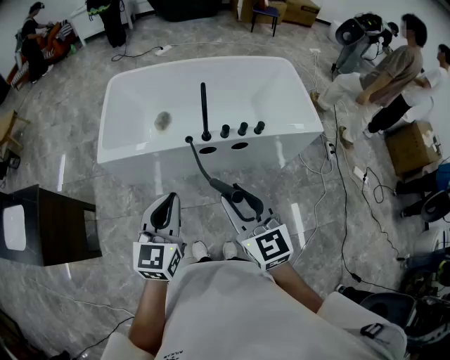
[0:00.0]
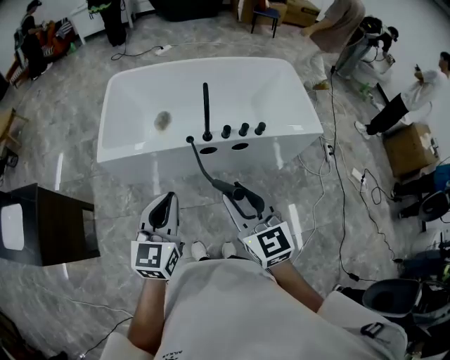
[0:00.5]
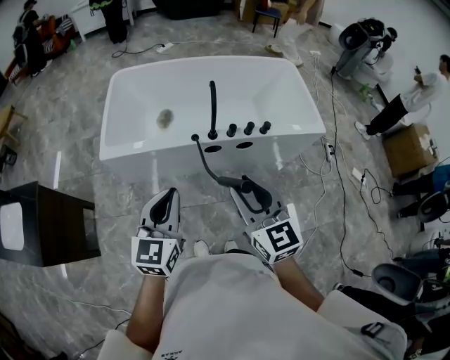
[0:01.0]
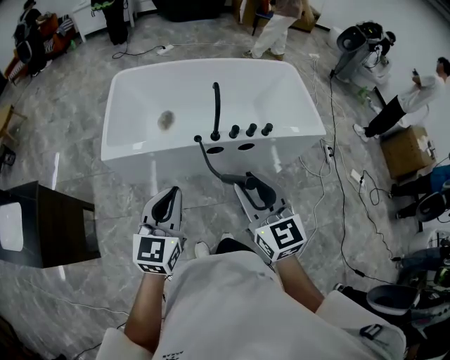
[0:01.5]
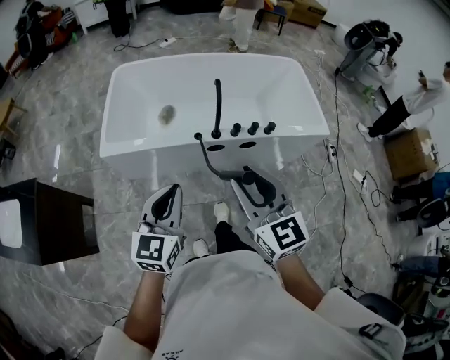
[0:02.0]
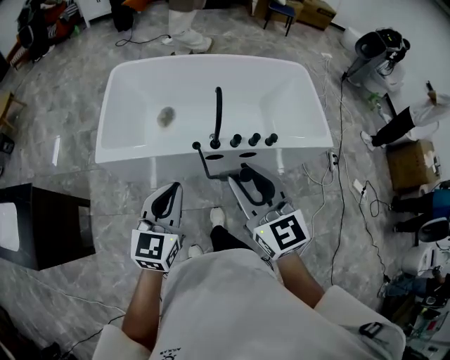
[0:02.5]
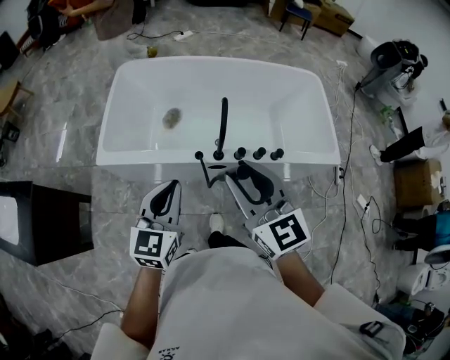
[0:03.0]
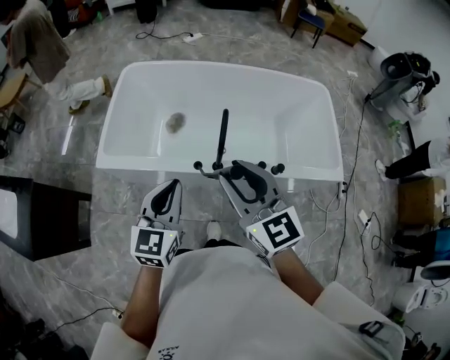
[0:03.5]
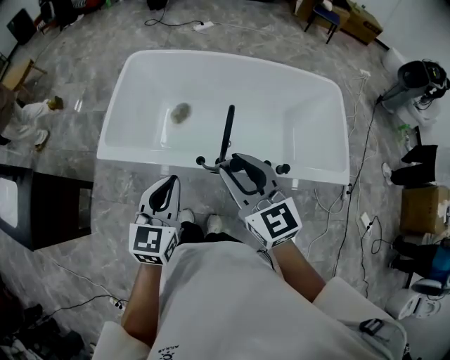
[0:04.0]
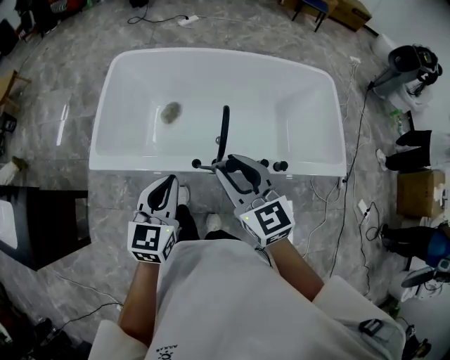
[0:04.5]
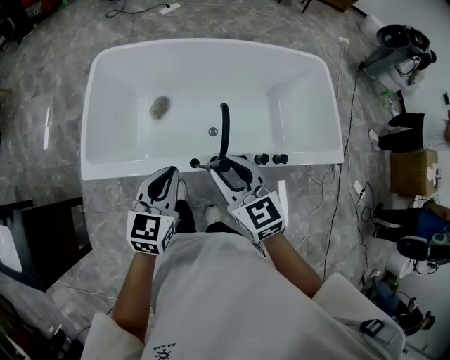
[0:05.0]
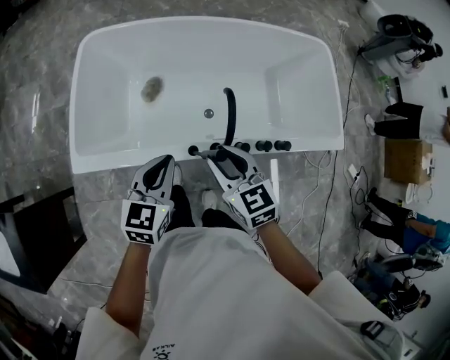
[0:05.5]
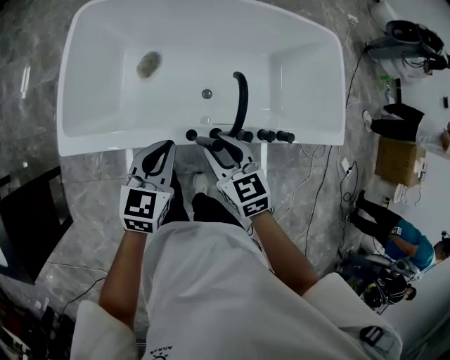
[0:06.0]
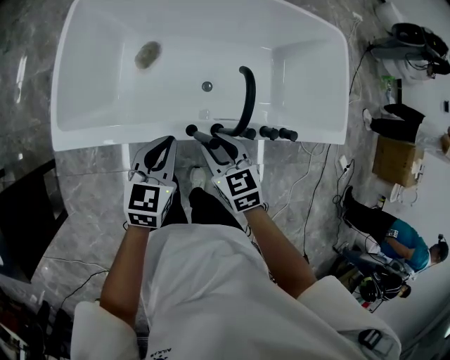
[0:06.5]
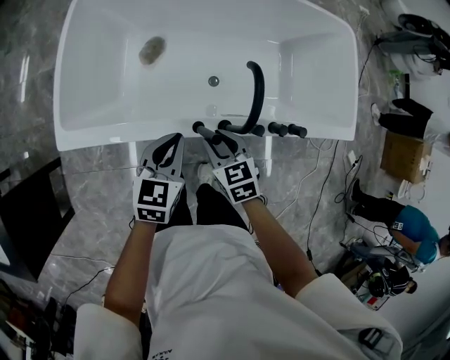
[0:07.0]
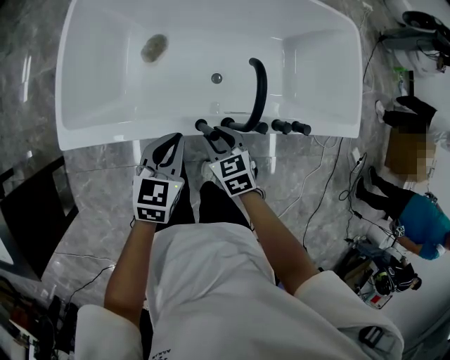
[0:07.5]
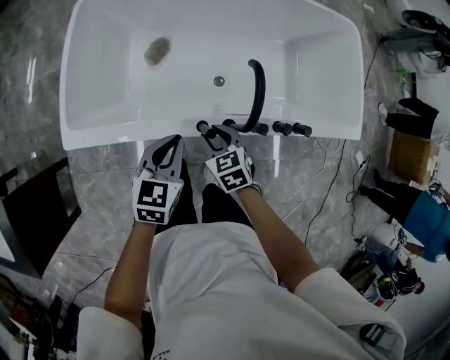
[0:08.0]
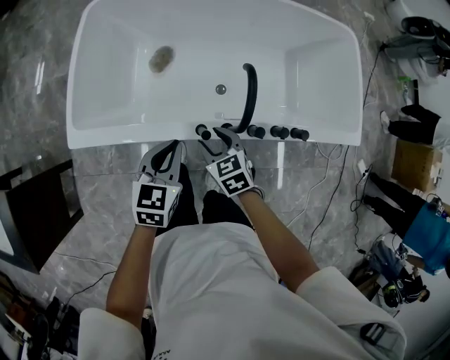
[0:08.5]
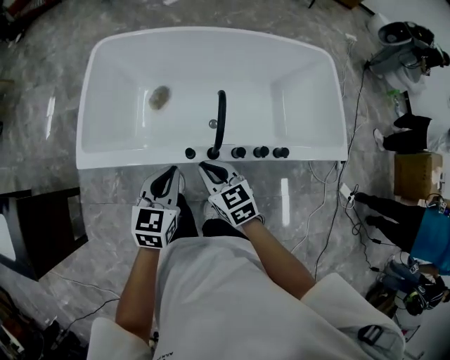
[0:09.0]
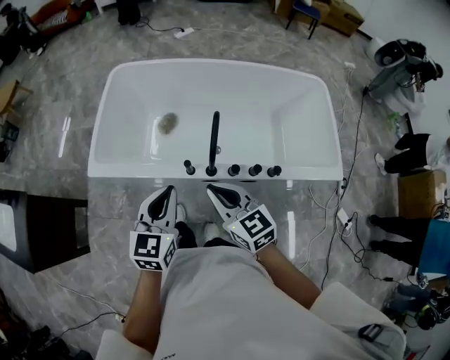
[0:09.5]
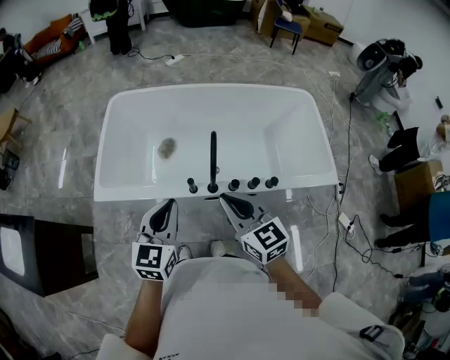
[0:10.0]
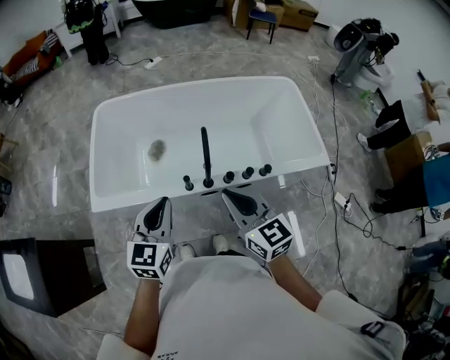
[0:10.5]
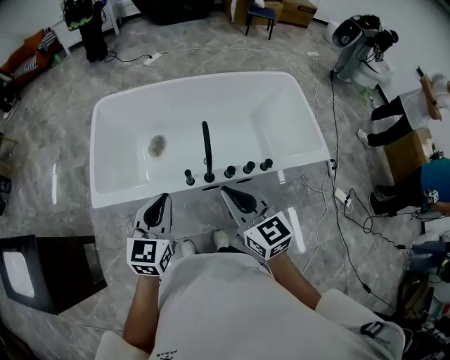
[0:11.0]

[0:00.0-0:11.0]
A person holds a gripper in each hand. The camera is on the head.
0:00.0 to 0:02.0: The right gripper changes place by roughly 5 cm. The left gripper changes place by some 5 cm.
0:02.0 to 0:03.5: The right gripper shifts roughly 20 cm forward. Meanwhile the left gripper moves forward and to the right, about 20 cm.
0:03.5 to 0:05.5: The left gripper moves forward and downward, about 20 cm, while the right gripper moves downward and forward, some 25 cm, and turns by roughly 30 degrees.
0:05.5 to 0:07.5: The right gripper goes approximately 20 cm downward, and rotates about 20 degrees; the left gripper moves downward, approximately 10 cm.
0:07.5 to 0:09.0: The left gripper moves upward and backward, about 10 cm. Meanwhile the right gripper heads upward, covering roughly 15 cm, and closes its fingers.
0:09.0 to 0:11.0: The right gripper goes approximately 20 cm upward and backward, and changes its angle by roughly 20 degrees; the left gripper is displaced upward and backward by some 15 cm.

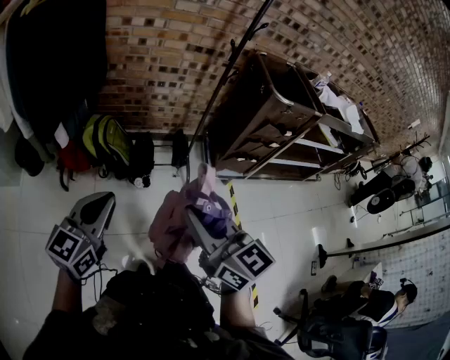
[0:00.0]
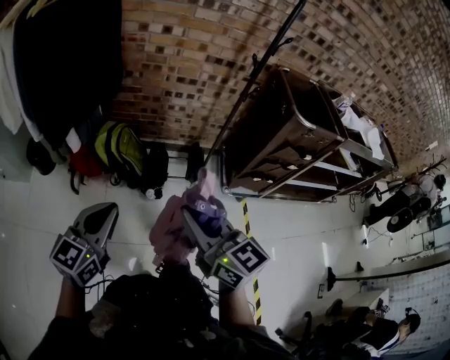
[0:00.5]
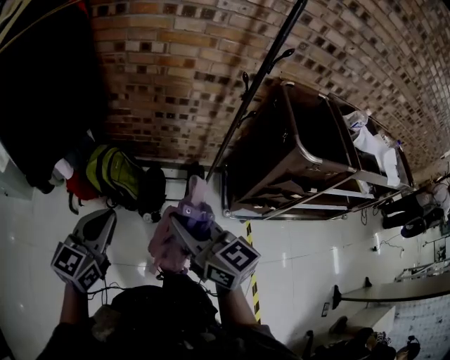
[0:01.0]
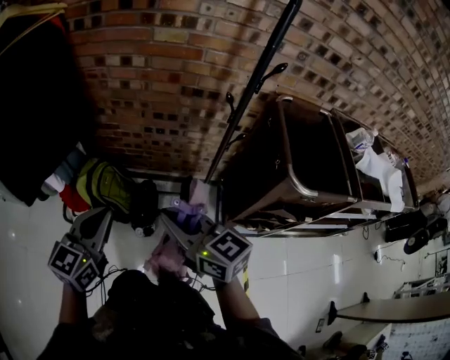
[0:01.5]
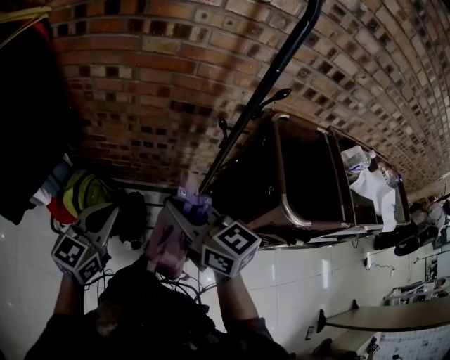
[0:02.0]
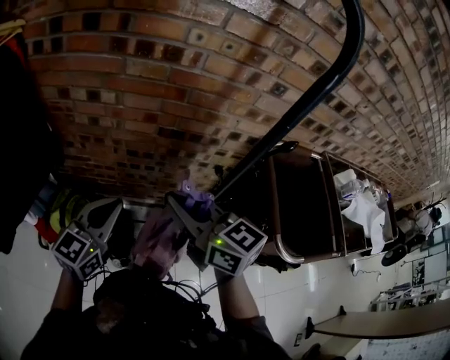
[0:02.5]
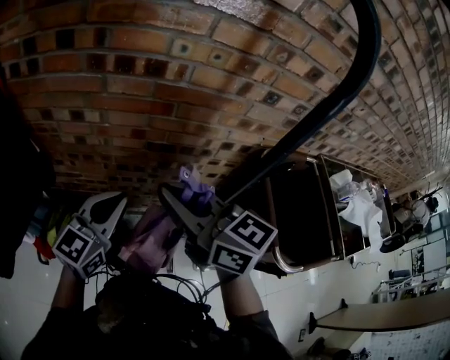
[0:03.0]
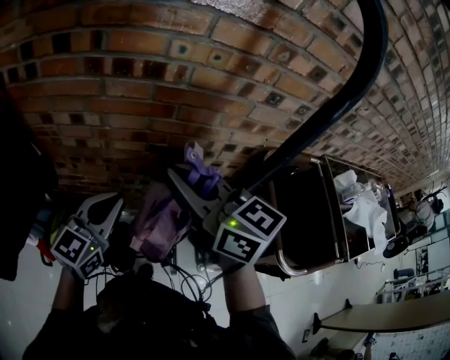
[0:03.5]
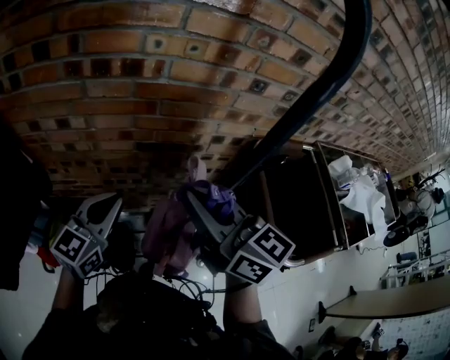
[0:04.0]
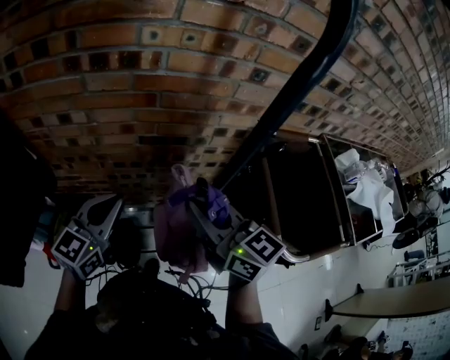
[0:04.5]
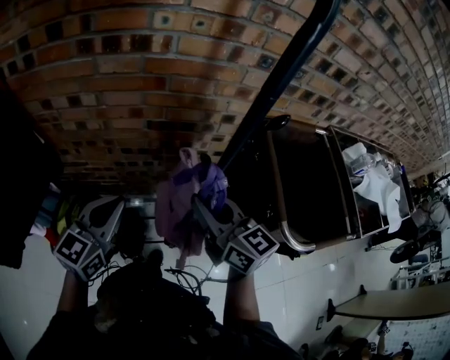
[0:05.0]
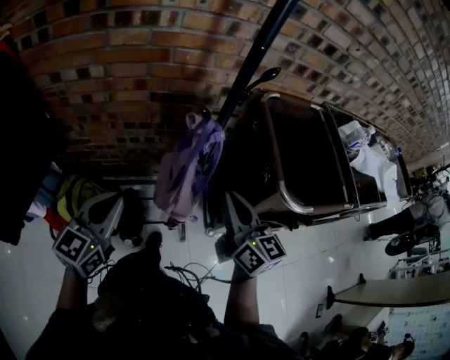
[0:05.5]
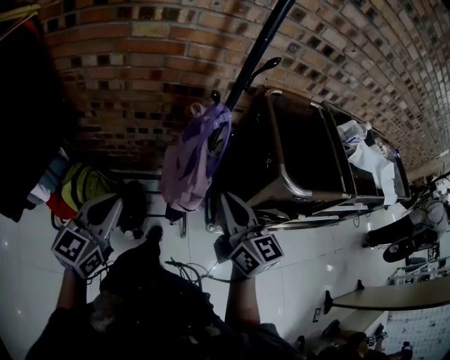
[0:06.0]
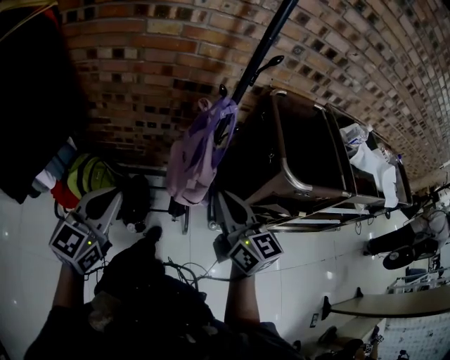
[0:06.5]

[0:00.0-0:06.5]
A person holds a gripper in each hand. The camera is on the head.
0:00.0 to 0:02.0: The pair of grippers is taken forward and to the right, roughly 50 cm.
0:02.0 to 0:04.5: The right gripper travels forward and to the right by about 20 cm. Meanwhile the left gripper goes roughly 20 cm forward.
0:04.5 to 0:06.5: The grippers both shift backward by approximately 25 cm.

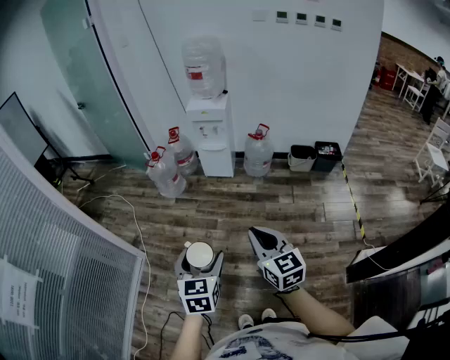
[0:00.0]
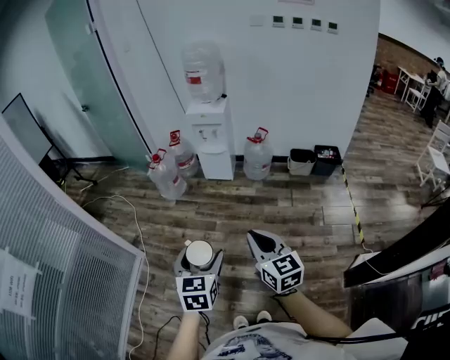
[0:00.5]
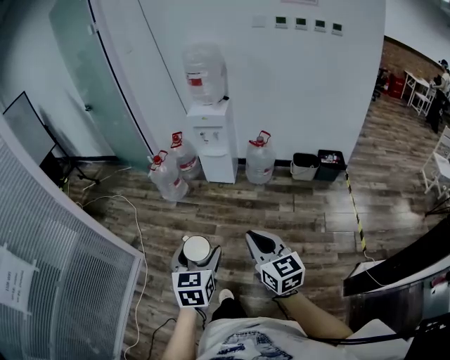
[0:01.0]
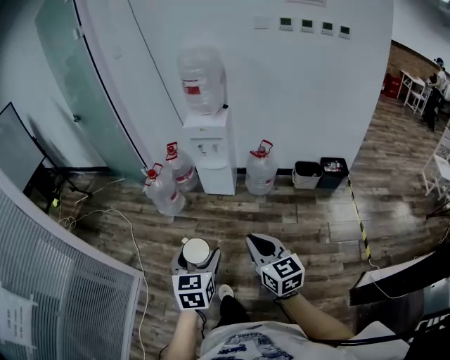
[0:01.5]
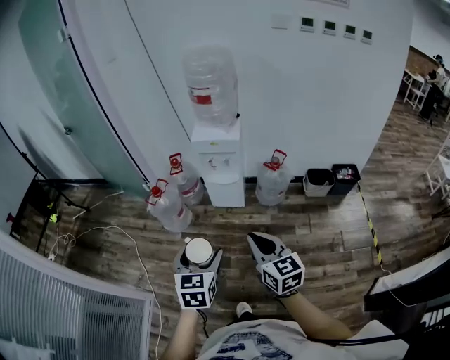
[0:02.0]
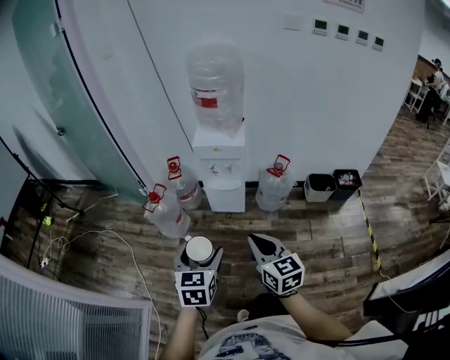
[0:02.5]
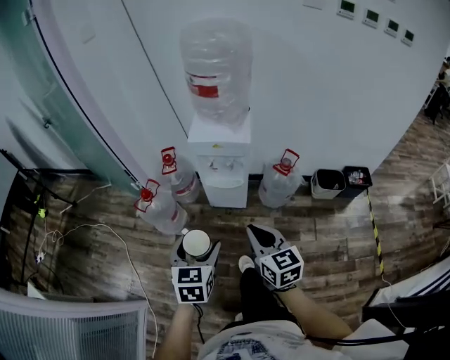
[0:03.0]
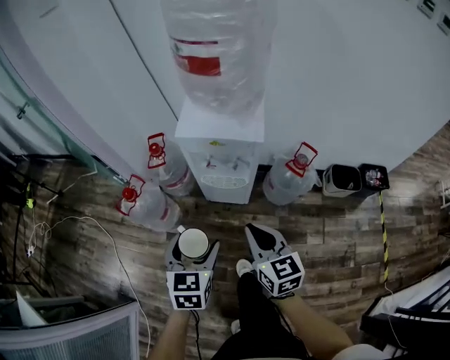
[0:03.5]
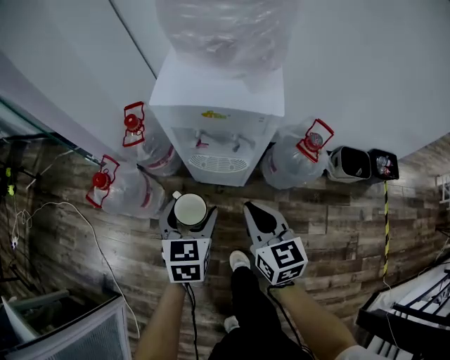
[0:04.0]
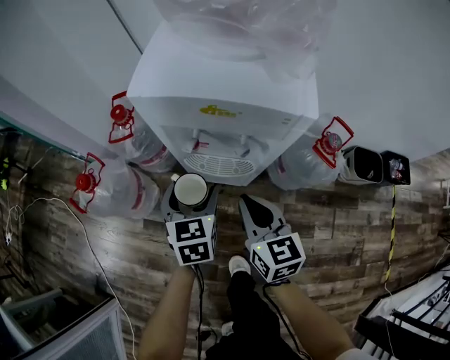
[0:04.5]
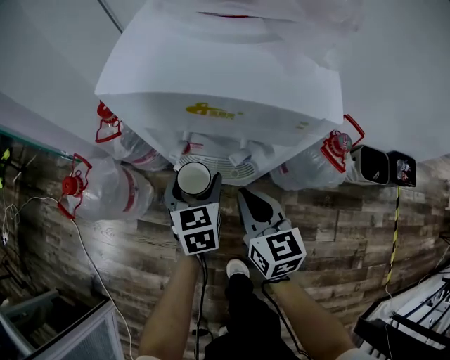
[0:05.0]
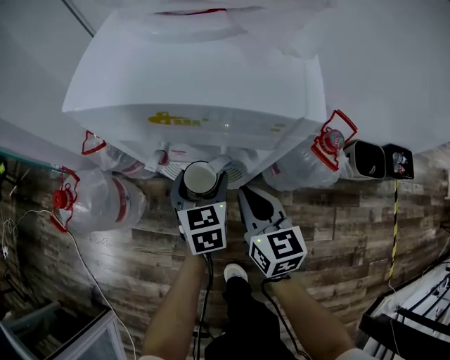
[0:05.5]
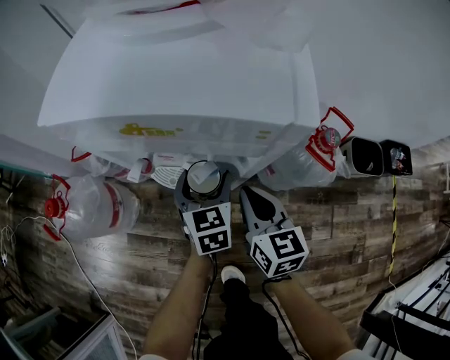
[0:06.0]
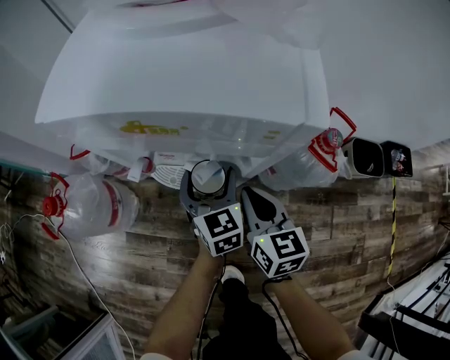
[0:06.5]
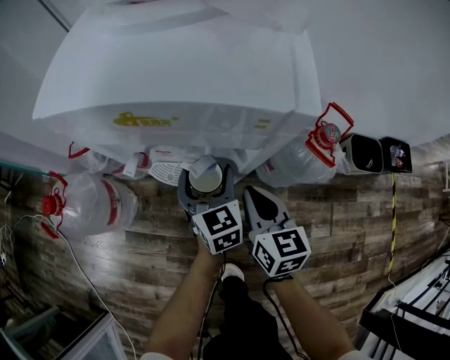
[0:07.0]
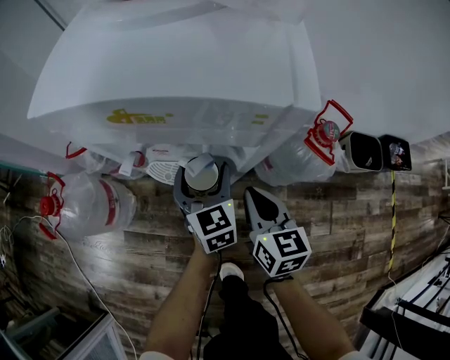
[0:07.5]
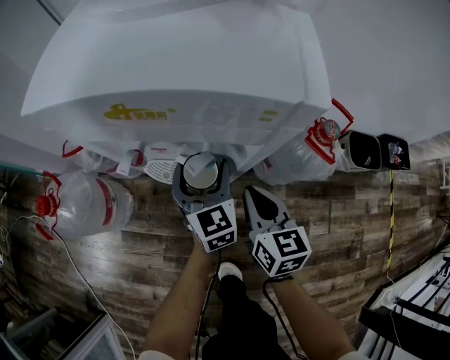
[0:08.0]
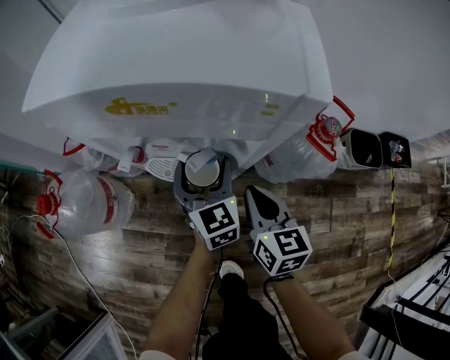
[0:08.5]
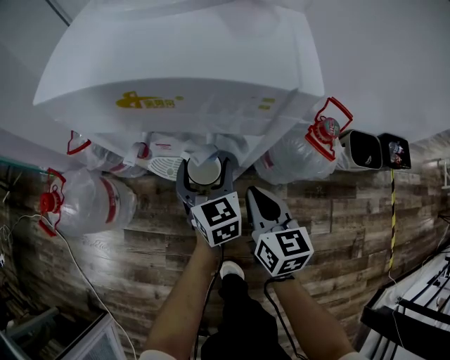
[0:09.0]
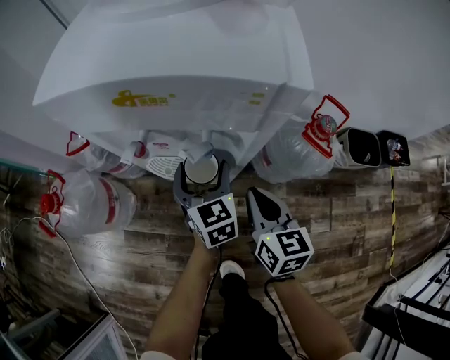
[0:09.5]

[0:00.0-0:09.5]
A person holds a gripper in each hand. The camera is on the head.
0:00.0 to 0:02.0: Both grippers move forward, about 35 cm.
0:02.0 to 0:04.0: The two grippers travel together, forward, about 50 cm. Both grippers move downward, roughly 35 cm.
0:04.0 to 0:05.5: The right gripper is displaced downward and forward by some 20 cm. The left gripper is displaced downward, forward and to the right by approximately 25 cm.
0:05.5 to 0:07.5: The right gripper ends up roughly 5 cm from where it was.
0:07.5 to 0:09.5: The grippers make only small movements.
